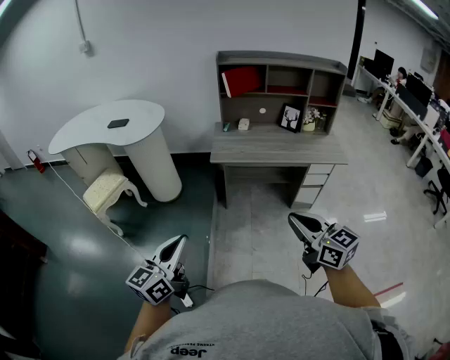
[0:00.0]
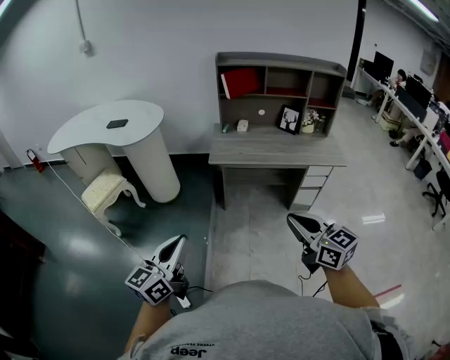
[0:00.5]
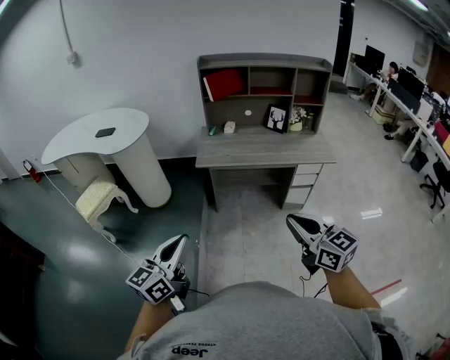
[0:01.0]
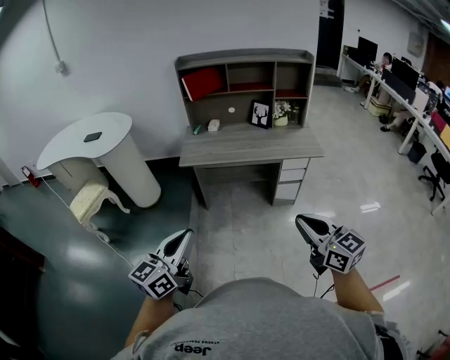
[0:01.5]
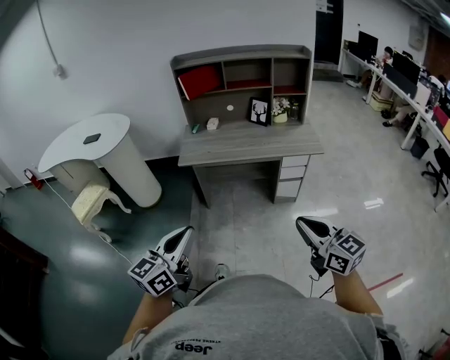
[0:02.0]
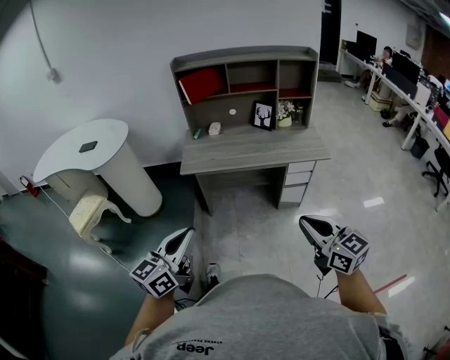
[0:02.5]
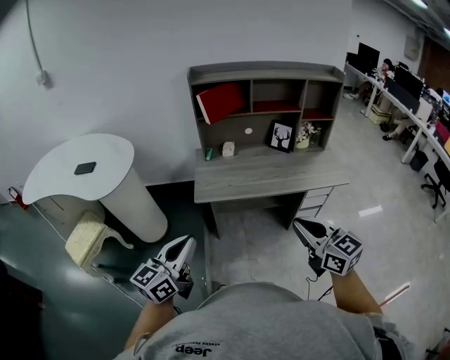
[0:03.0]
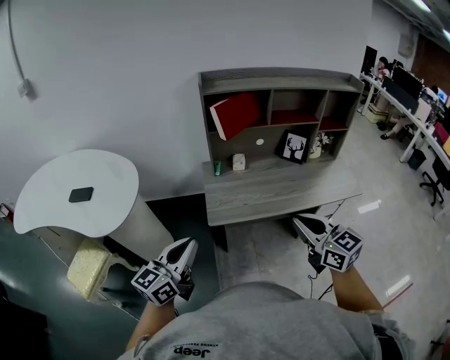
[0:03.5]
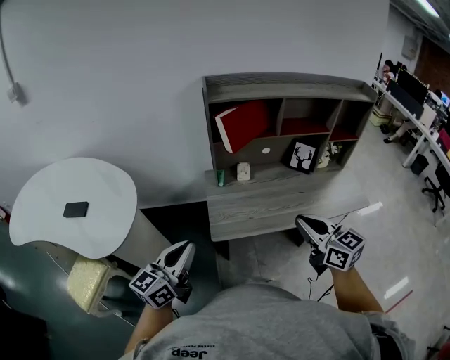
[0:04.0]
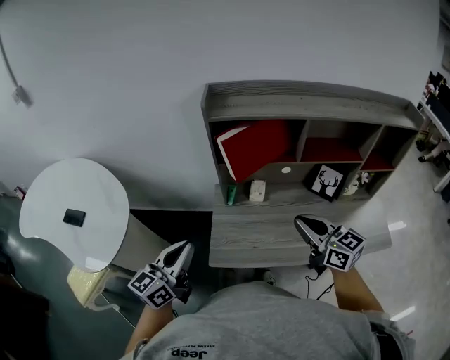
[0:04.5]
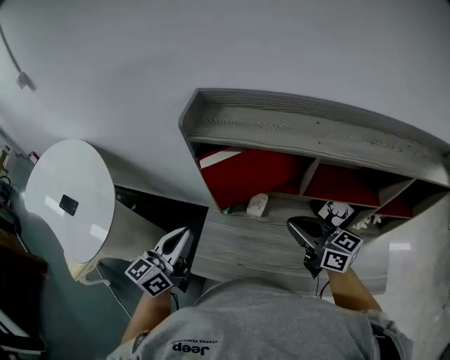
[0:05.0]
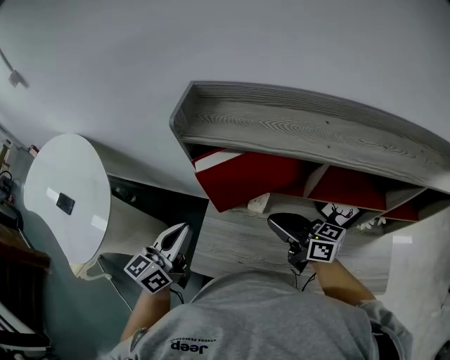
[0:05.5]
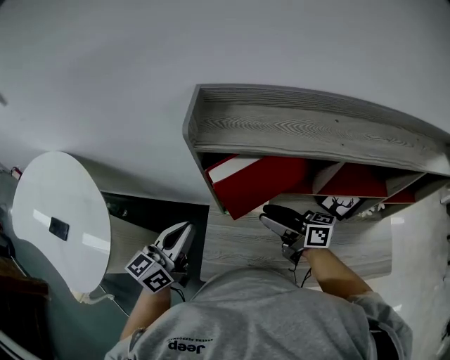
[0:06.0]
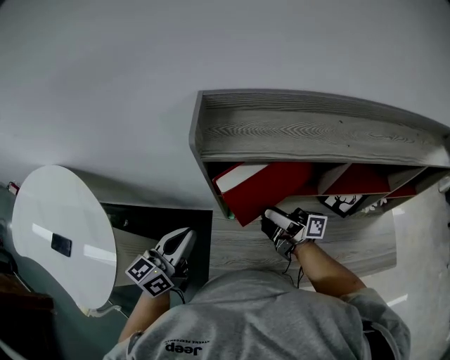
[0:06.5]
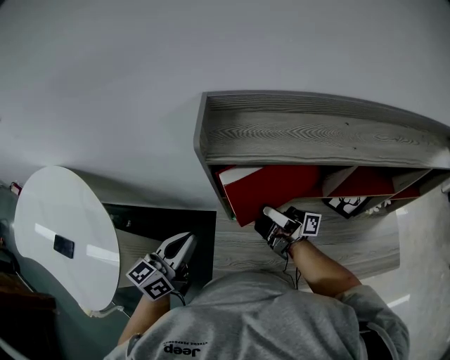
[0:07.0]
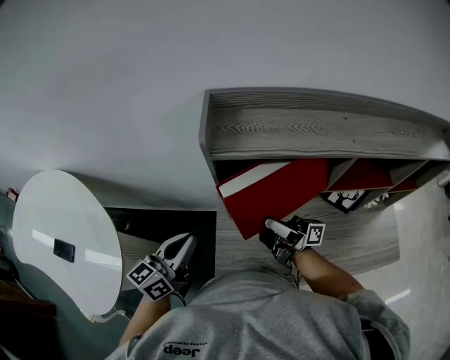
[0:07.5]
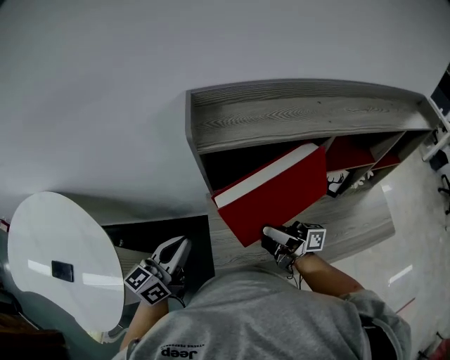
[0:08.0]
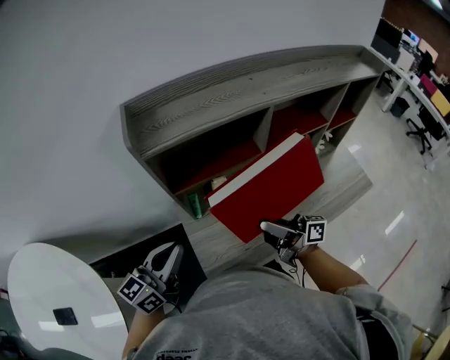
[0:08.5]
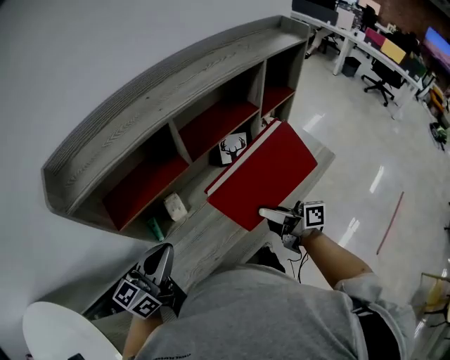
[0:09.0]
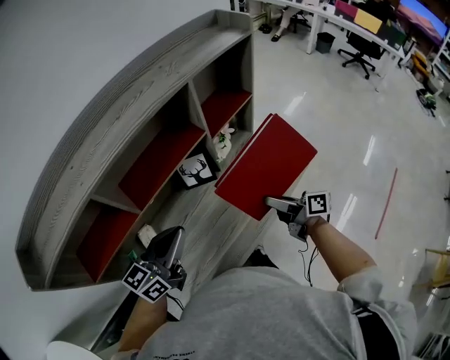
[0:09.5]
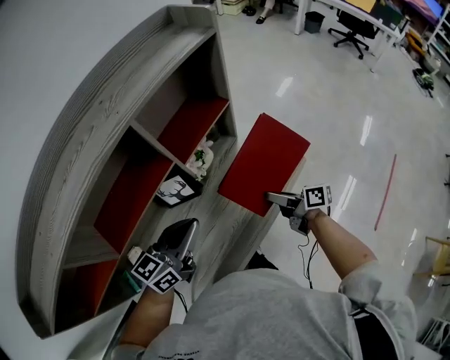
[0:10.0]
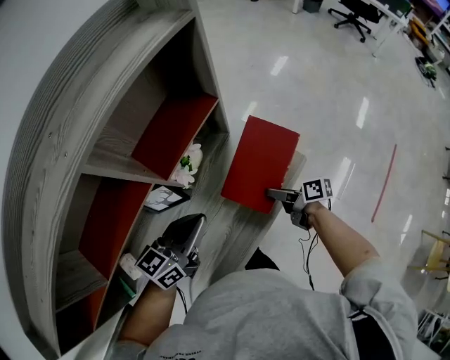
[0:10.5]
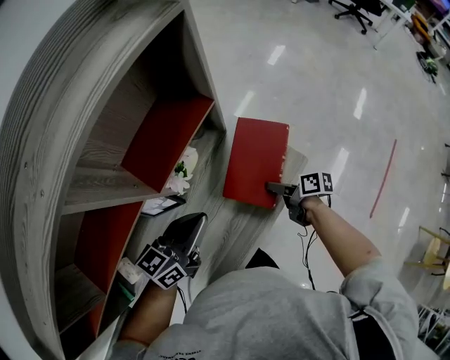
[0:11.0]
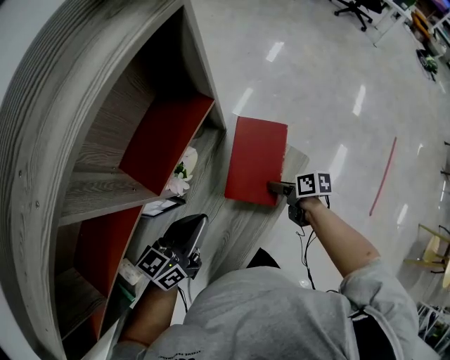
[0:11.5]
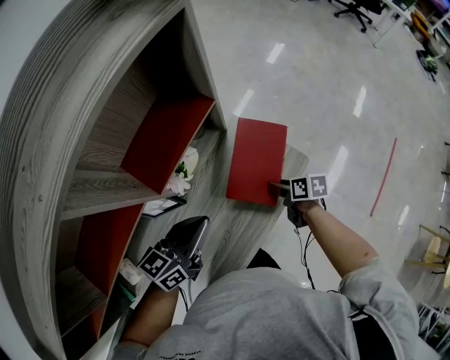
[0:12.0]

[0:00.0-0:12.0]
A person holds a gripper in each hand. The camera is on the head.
0:00.0 to 0:02.0: The grippers both shift to the right by about 25 cm.
0:02.0 to 0:04.0: The pair of grippers is taken forward and to the left, roughly 60 cm.
0:04.0 to 0:06.0: The right gripper moves some 40 cm, turns by roughly 50 degrees, and opens its fingers. Meanwhile the left gripper changes place by about 35 cm.
0:06.0 to 0:08.0: The right gripper ends up approximately 5 cm from where it was, and changes its angle by roughly 30 degrees.
0:08.0 to 0:10.0: The two grippers travel together, some 60 cm. The right gripper tips its fingers downward by roughly 40 degrees. The left gripper rotates about 50 degrees.
0:10.0 to 0:12.0: The right gripper heads downward, to the right and forward, covering some 15 cm, and points its fingers some 40 degrees further downward, while the left gripper travels downward, forward and to the right by roughly 15 cm.

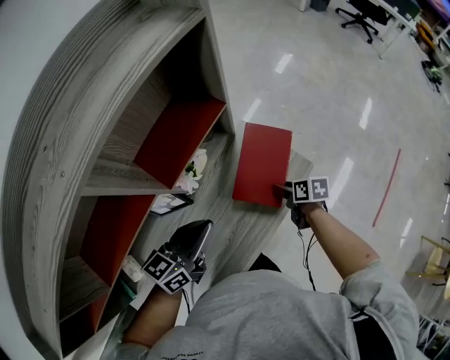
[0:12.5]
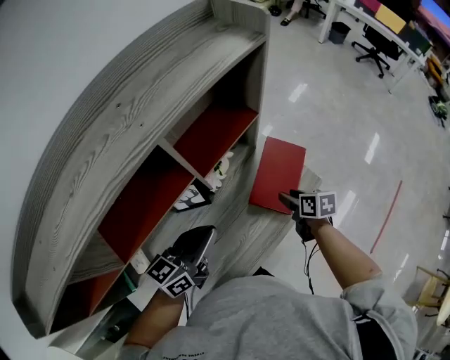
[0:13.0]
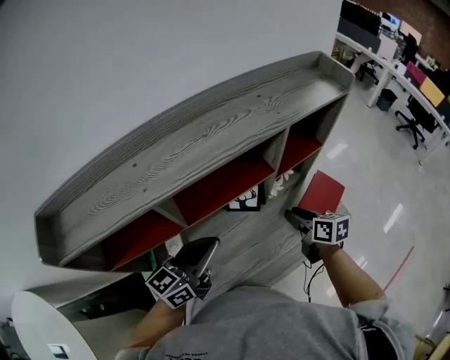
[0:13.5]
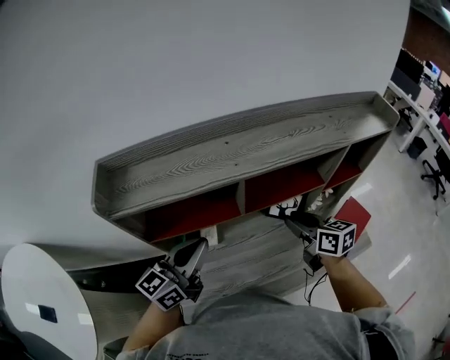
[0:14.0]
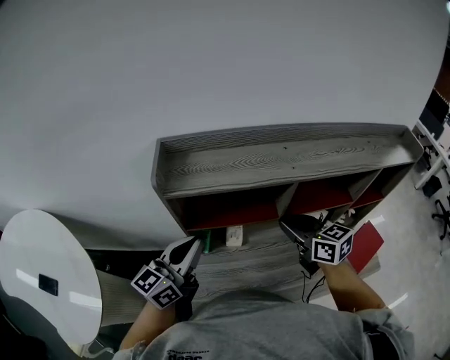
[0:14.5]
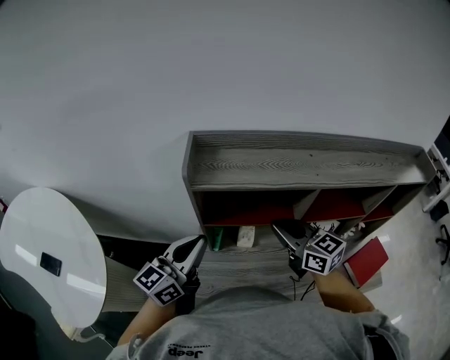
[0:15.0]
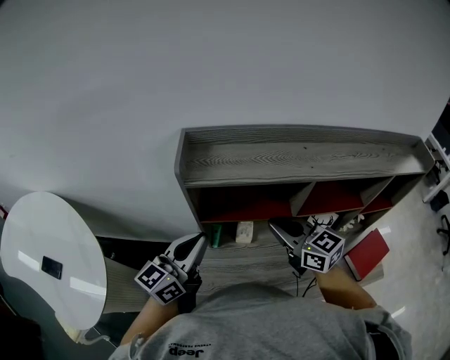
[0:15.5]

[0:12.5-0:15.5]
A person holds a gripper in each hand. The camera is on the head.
0:12.5 to 0:14.0: The pair of grippers is taken some 40 cm. The left gripper changes its angle by about 40 degrees. Meanwhile the right gripper angles its fingers upward, by roughly 30 degrees, and closes up.
0:14.0 to 0:15.5: The right gripper goes roughly 25 cm to the left, and swivels approximately 30 degrees. Meanwhile the left gripper travels to the left by roughly 15 cm.

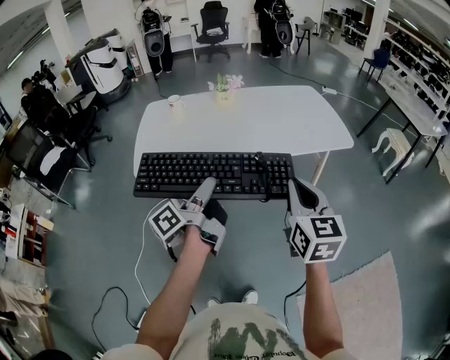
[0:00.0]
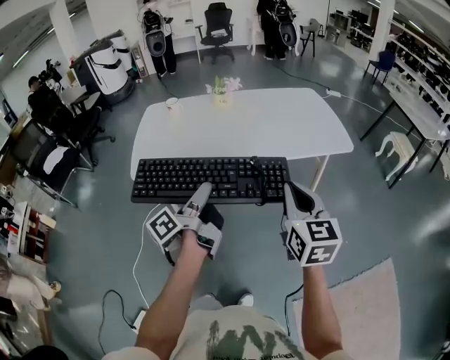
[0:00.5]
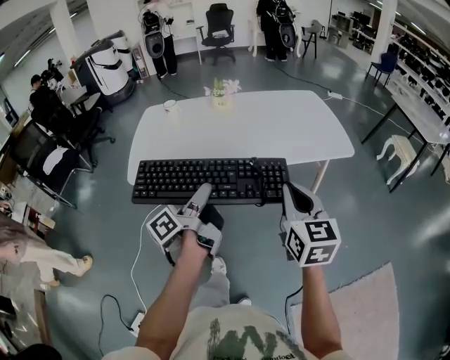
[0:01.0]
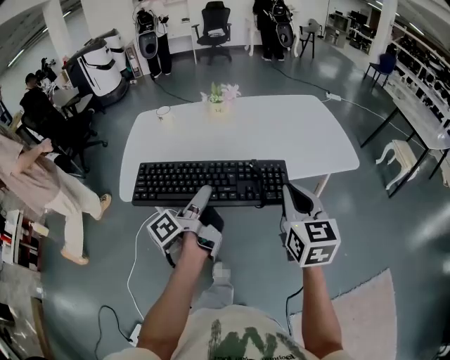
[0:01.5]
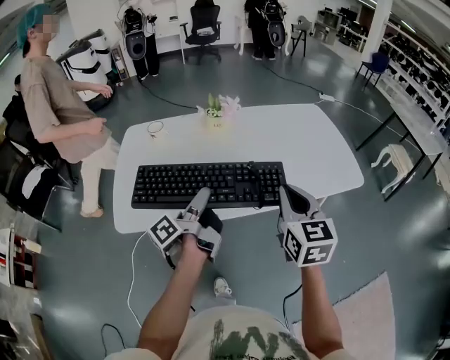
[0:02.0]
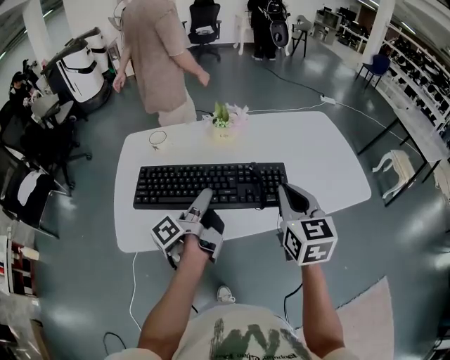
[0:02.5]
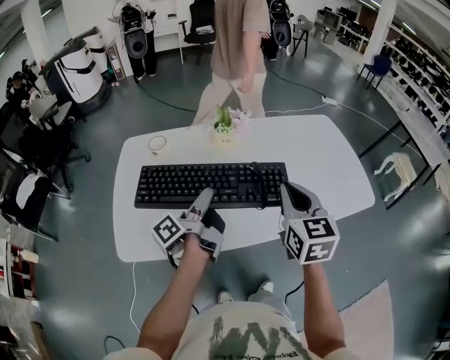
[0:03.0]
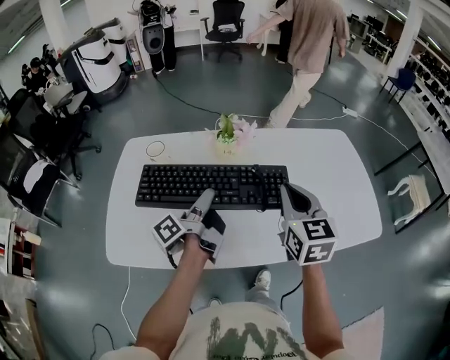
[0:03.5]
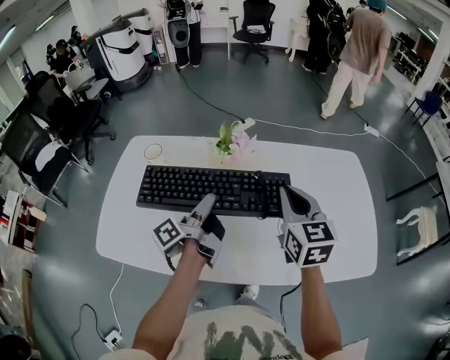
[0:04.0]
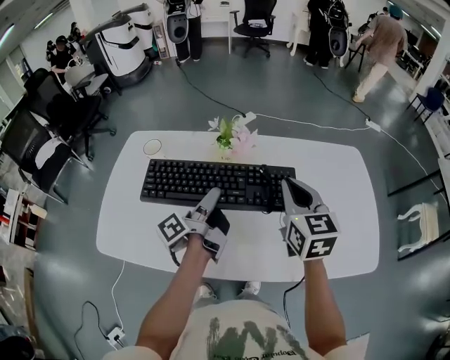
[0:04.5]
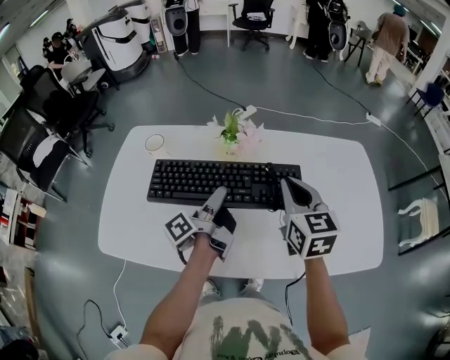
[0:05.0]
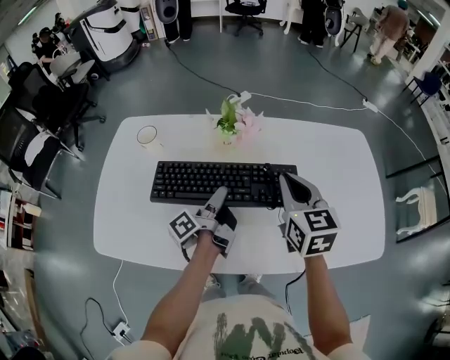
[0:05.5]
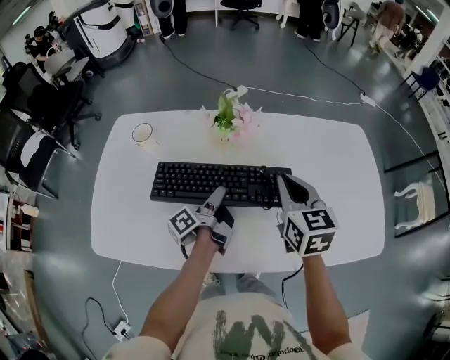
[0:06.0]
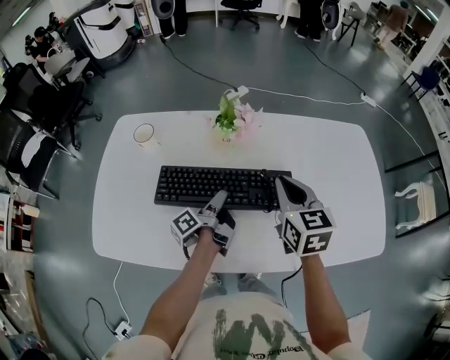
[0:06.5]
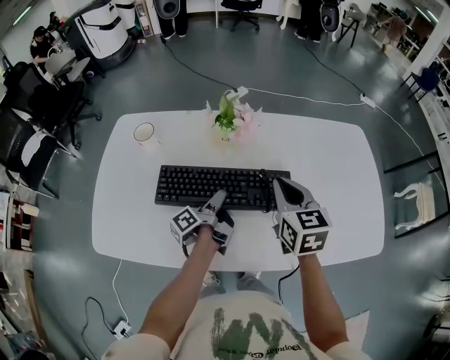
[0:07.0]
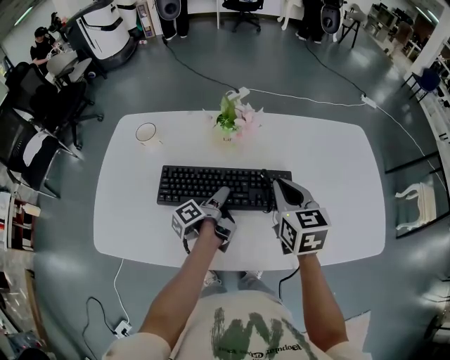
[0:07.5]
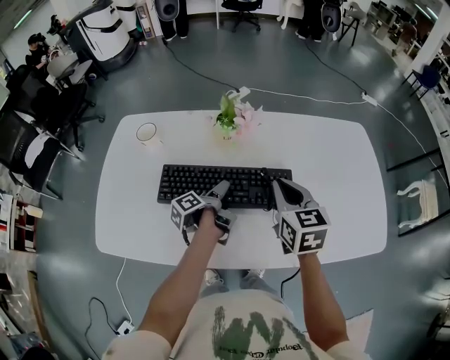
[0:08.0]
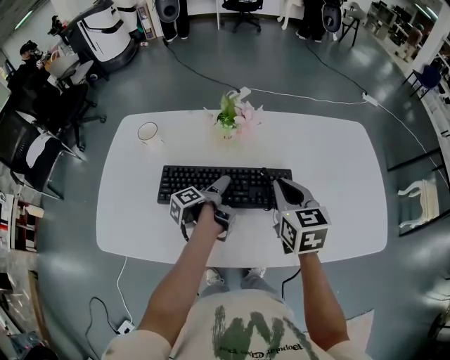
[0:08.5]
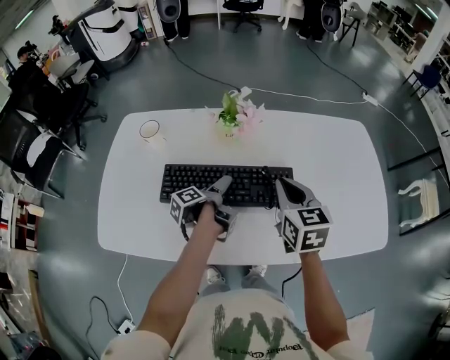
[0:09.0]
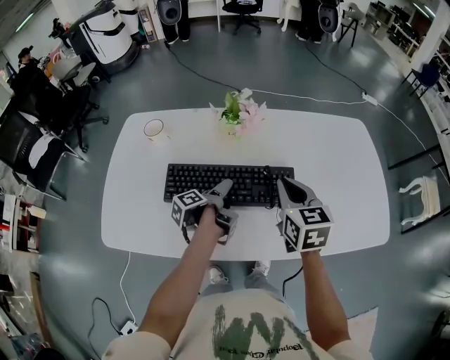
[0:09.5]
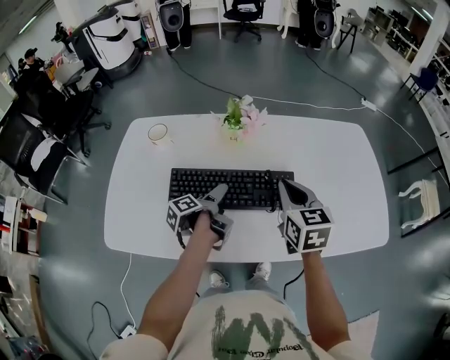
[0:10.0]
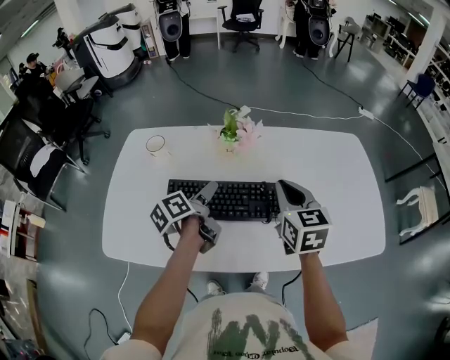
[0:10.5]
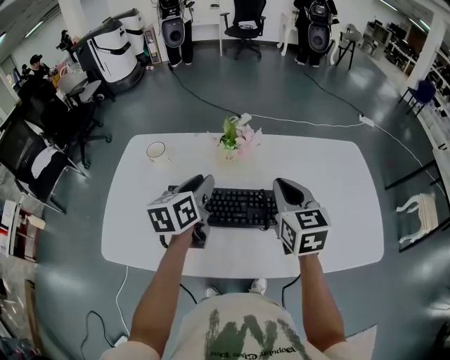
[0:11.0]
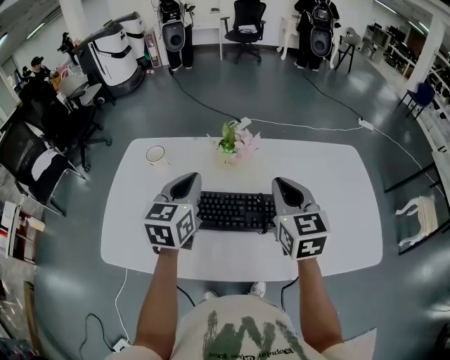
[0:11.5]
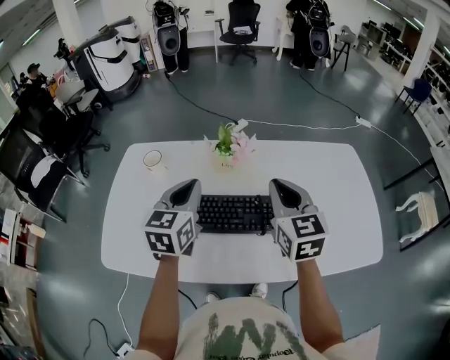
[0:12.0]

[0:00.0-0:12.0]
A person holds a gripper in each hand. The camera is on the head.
0:00.0 to 0:02.0: The right gripper moves about 25 cm.
0:02.0 to 0:04.0: The right gripper changes place by about 25 cm.
0:04.0 to 0:06.0: The right gripper heads downward, covering about 5 cm.
0:10.0 to 0:12.0: The right gripper goes roughly 10 cm upward.
